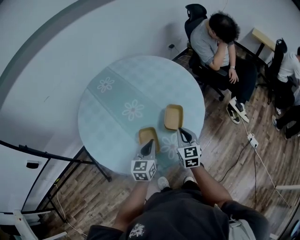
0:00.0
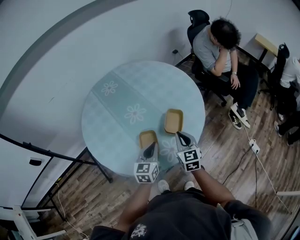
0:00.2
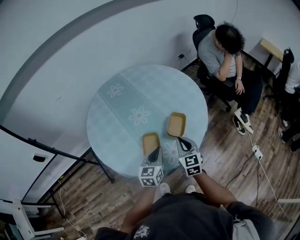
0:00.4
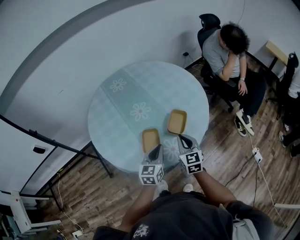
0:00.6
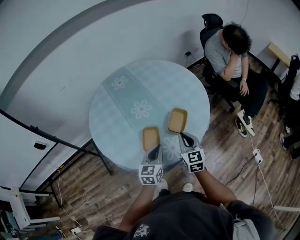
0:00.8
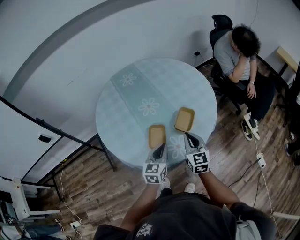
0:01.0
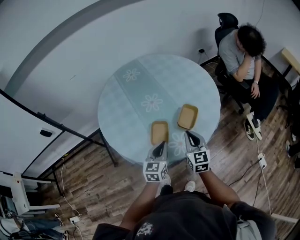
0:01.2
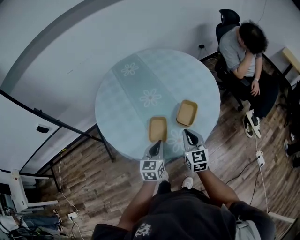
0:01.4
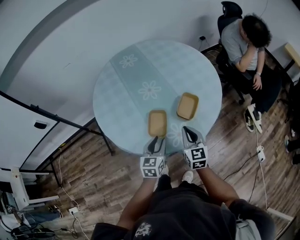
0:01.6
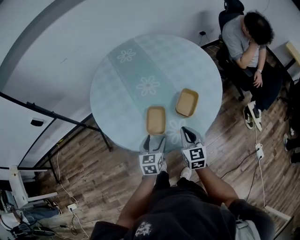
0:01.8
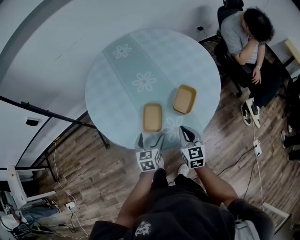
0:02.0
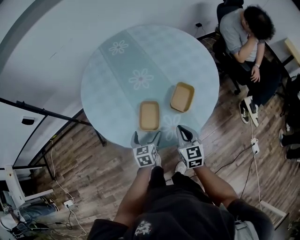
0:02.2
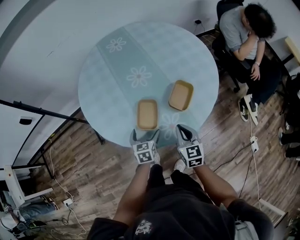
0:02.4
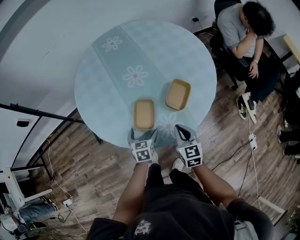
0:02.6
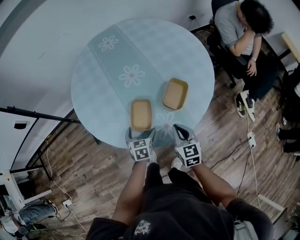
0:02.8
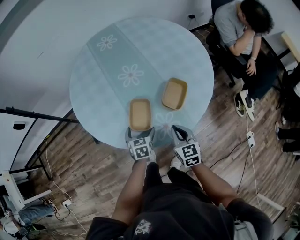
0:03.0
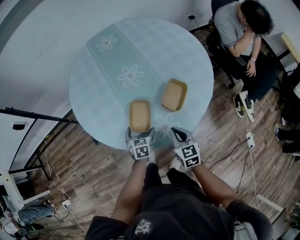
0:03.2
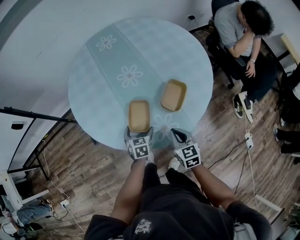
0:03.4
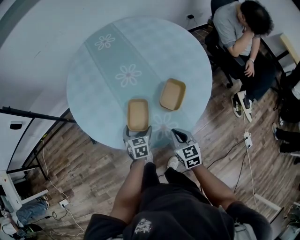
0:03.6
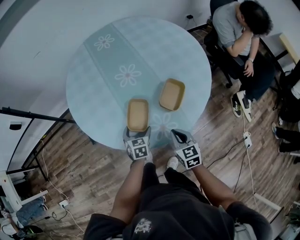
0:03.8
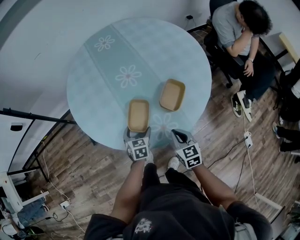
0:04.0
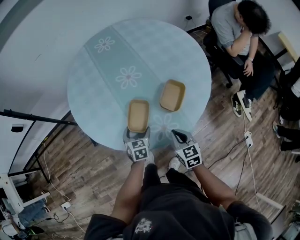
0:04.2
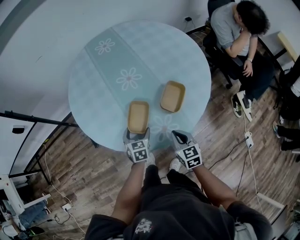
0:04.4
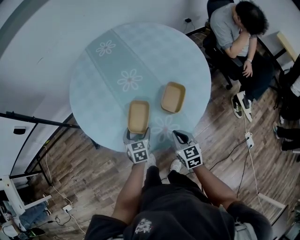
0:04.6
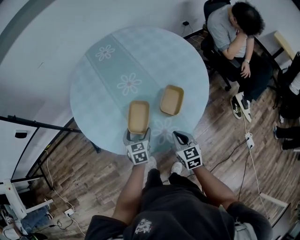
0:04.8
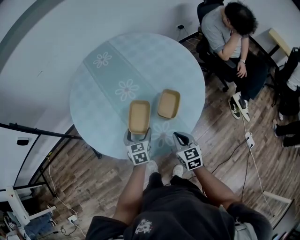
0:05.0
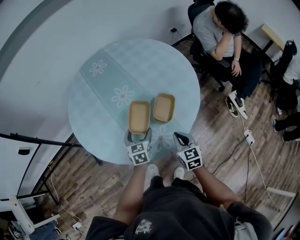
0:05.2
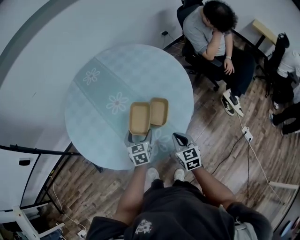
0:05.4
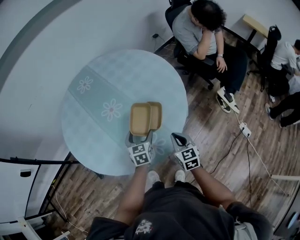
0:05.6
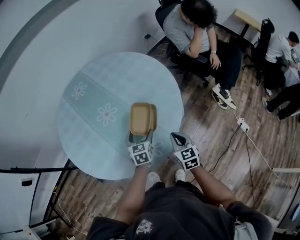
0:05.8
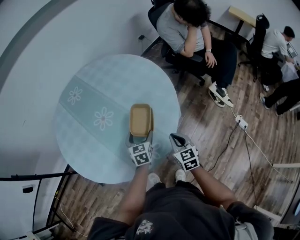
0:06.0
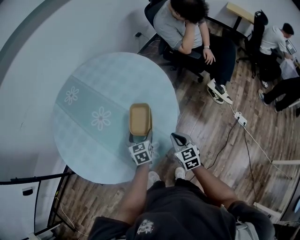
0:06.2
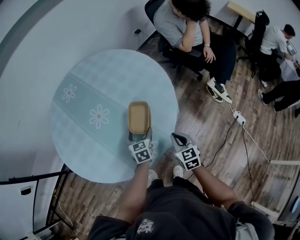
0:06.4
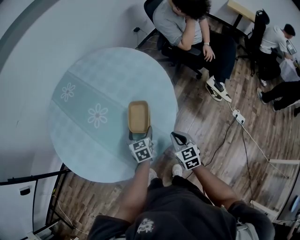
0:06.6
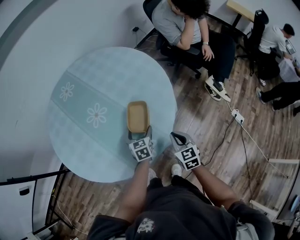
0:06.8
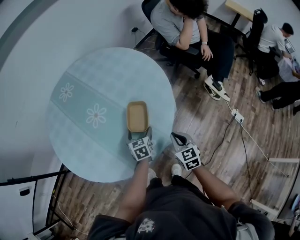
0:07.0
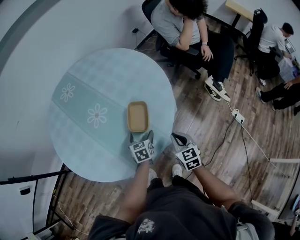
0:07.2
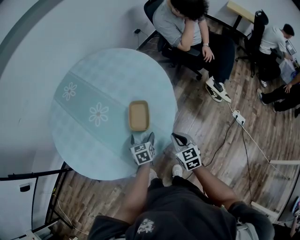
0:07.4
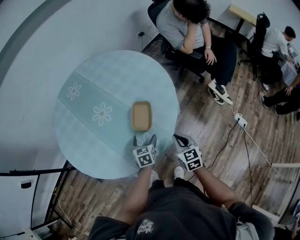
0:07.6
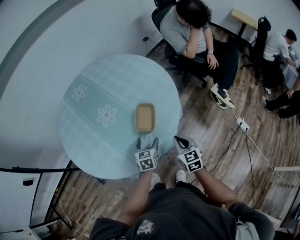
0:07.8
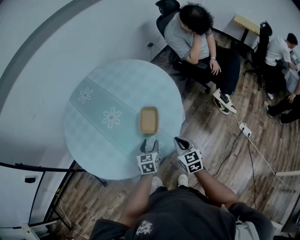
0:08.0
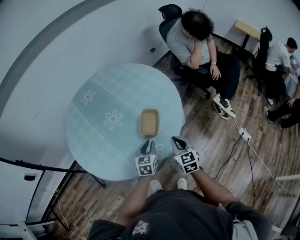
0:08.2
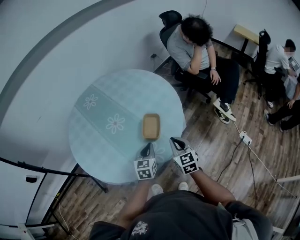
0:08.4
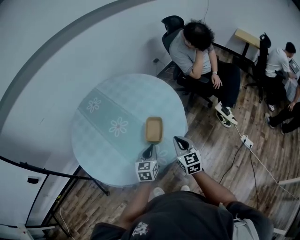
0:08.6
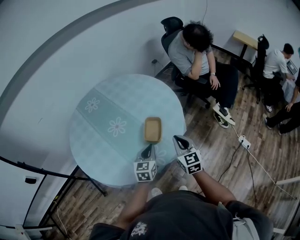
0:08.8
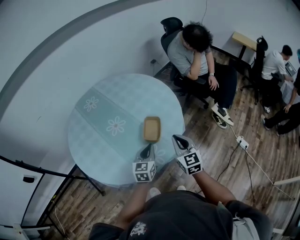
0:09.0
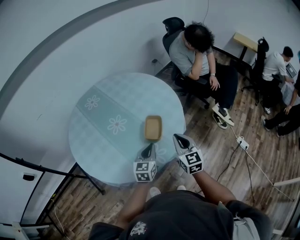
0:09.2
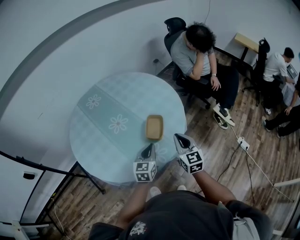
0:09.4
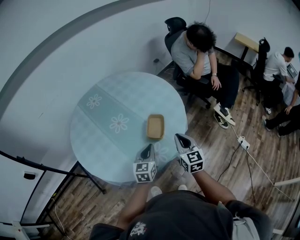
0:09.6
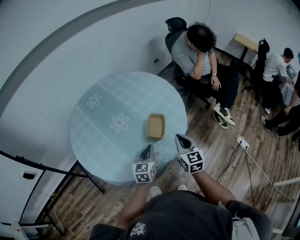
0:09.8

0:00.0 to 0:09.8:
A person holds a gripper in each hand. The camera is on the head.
0:00.0 to 0:01.4: The left gripper moves backward, some 5 cm, while the right gripper changes place by roughly 5 cm.
0:01.4 to 0:02.8: The right gripper goes approximately 10 cm downward. The left gripper shifts some 15 cm downward, changes its angle by approximately 20 degrees, and opens up.
0:02.8 to 0:04.2: The grippers stay close to where they were, moving slightly.
0:04.2 to 0:05.6: The right gripper moves to the right and upward, approximately 10 cm. Meanwhile the left gripper travels to the right, upward and forward by some 15 cm.
0:05.6 to 0:07.0: The right gripper travels to the right by roughly 5 cm, while the left gripper moves to the right and downward, some 10 cm.
0:07.0 to 0:08.4: The right gripper goes approximately 10 cm upward, while the left gripper goes about 15 cm upward and backward, and closes up.
0:08.4 to 0:09.8: The left gripper changes place by approximately 5 cm.

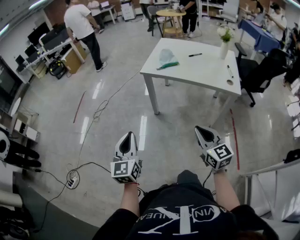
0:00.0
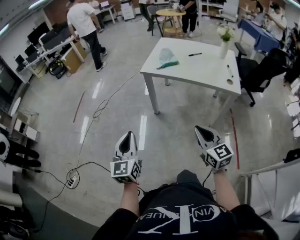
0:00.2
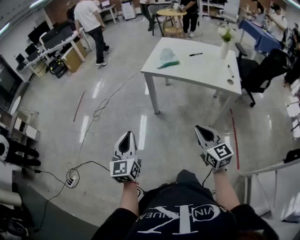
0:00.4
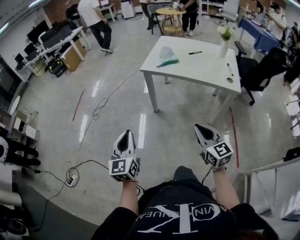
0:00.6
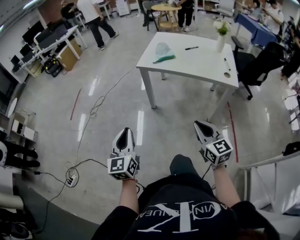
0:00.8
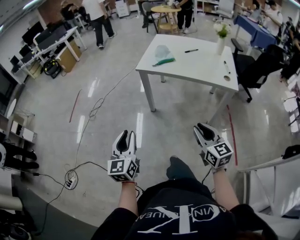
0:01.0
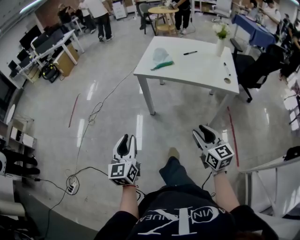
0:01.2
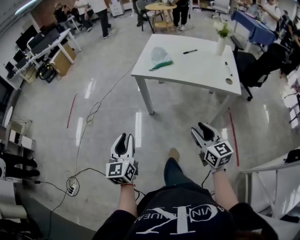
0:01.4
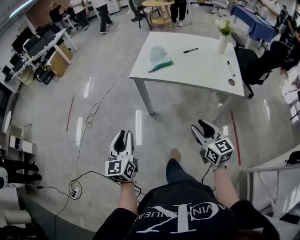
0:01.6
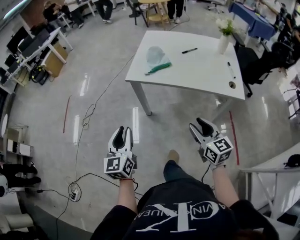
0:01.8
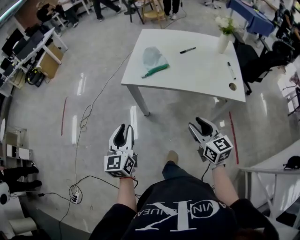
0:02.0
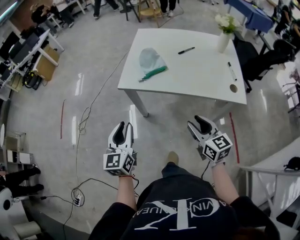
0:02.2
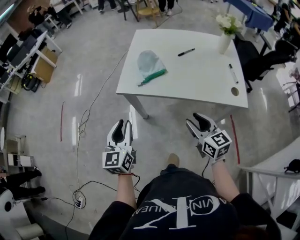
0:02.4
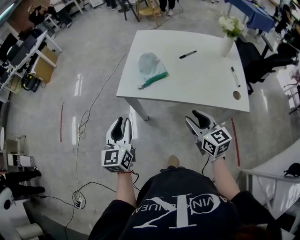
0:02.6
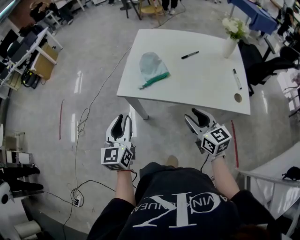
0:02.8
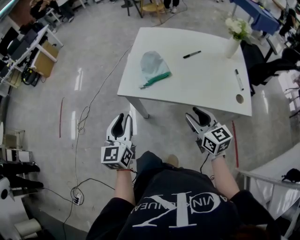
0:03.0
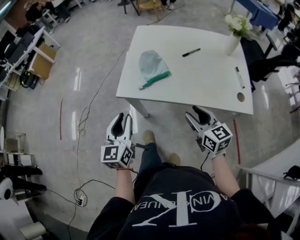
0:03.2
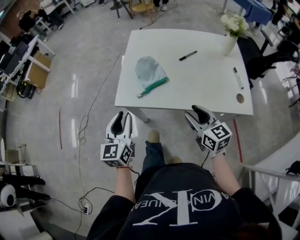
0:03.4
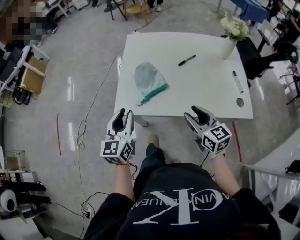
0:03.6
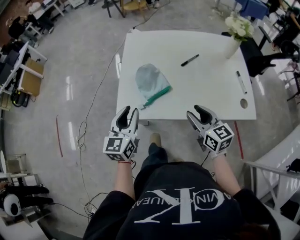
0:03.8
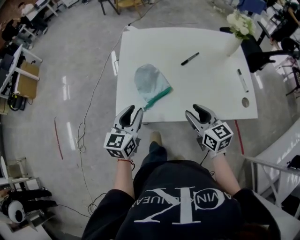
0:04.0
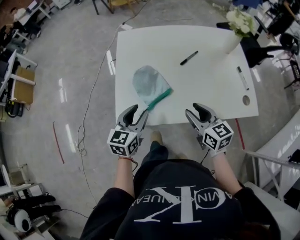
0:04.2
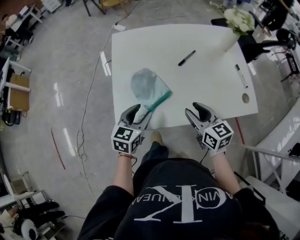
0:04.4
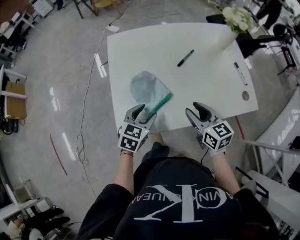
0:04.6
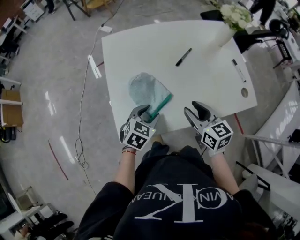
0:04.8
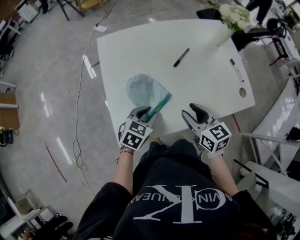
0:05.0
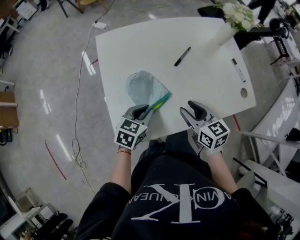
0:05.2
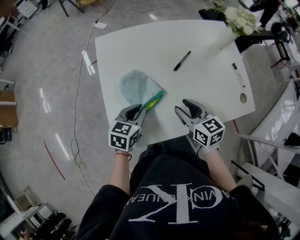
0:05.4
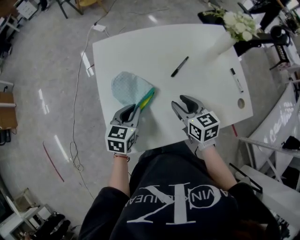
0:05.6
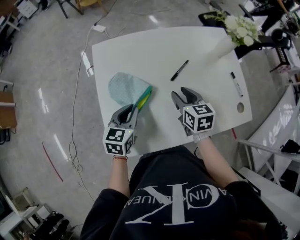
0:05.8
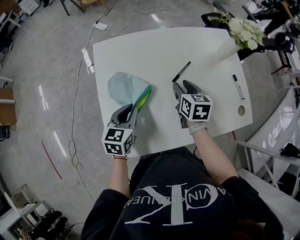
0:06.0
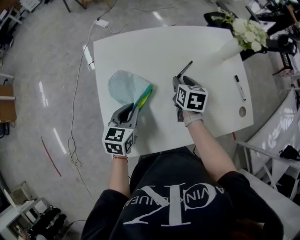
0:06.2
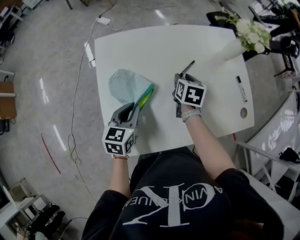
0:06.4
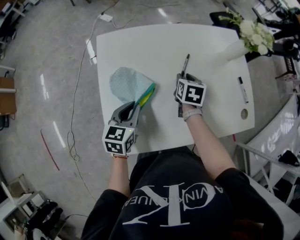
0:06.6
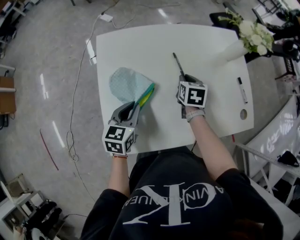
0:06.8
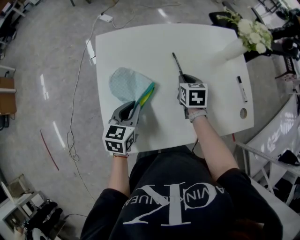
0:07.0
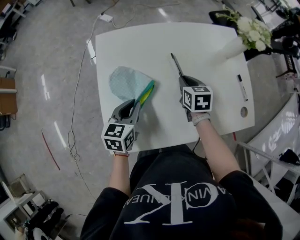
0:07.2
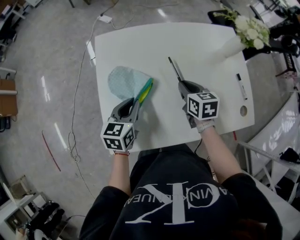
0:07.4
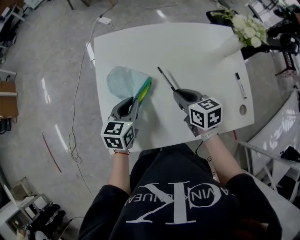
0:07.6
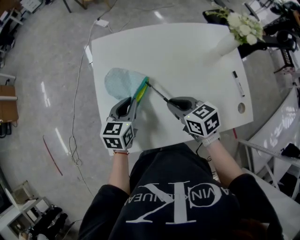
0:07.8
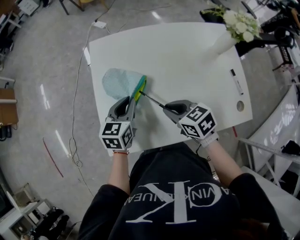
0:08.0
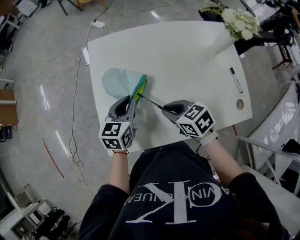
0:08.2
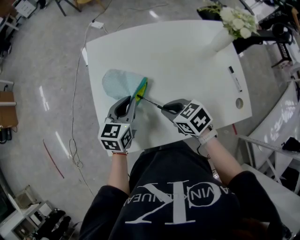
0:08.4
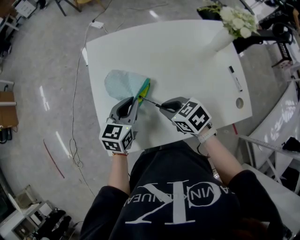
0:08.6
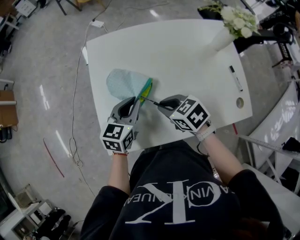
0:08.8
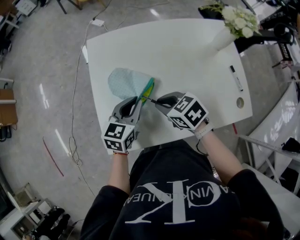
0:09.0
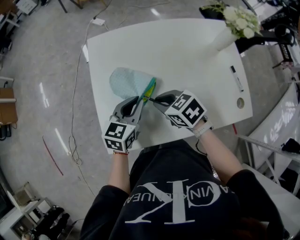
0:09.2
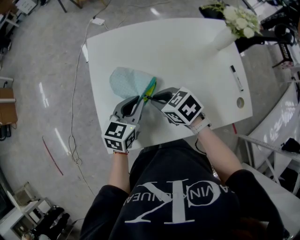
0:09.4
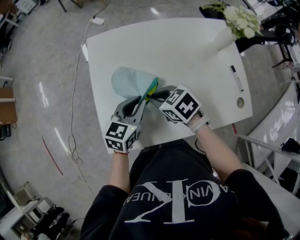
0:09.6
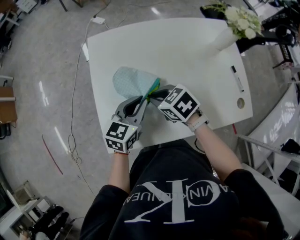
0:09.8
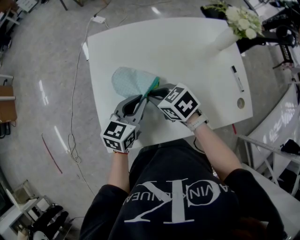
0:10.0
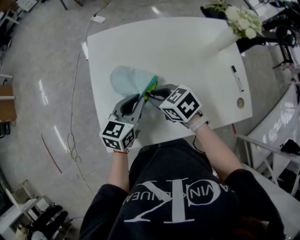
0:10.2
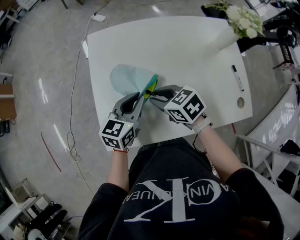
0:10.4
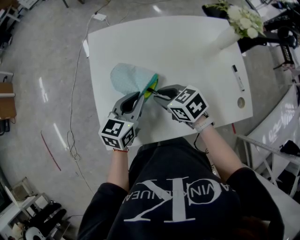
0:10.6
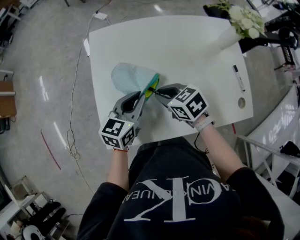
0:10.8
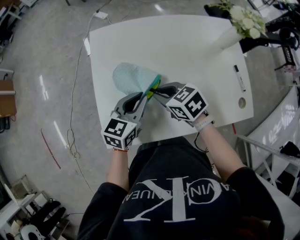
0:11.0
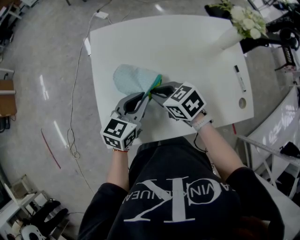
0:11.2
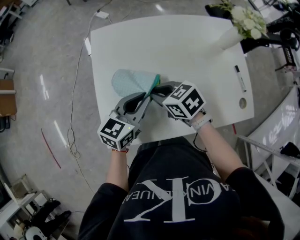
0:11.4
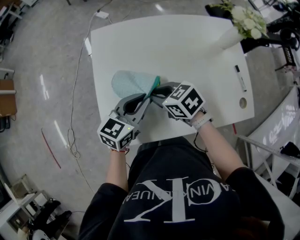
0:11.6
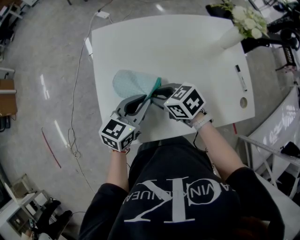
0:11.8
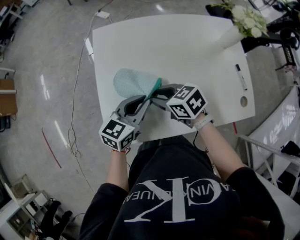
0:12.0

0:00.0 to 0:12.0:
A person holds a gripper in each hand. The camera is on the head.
0:00.0 to 0:01.6: The grippers both shift forward by some 15 cm. The left gripper opens its fingers; the right gripper opens up.
0:01.6 to 0:03.0: Both grippers move forward, roughly 25 cm.
0:03.0 to 0:04.4: The right gripper shifts by approximately 15 cm, while the left gripper changes place by roughly 25 cm, swivels some 40 degrees, and opens its fingers.
0:04.4 to 0:06.0: The left gripper moves forward, roughly 15 cm, and closes its fingers. Meanwhile the right gripper moves forward, roughly 20 cm, and turns by some 30 degrees.
0:06.0 to 0:07.6: The right gripper travels backward by approximately 5 cm, changes its angle by some 20 degrees, and closes.
0:07.6 to 0:09.0: The right gripper goes some 5 cm to the left, and turns by about 30 degrees.
0:09.0 to 0:12.0: The grippers make only small movements.

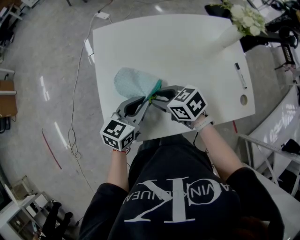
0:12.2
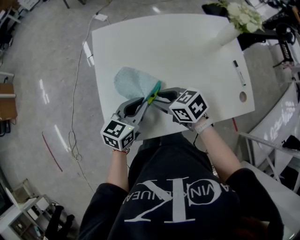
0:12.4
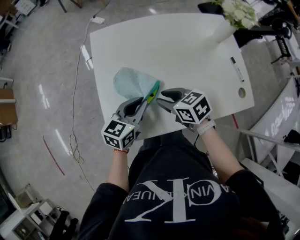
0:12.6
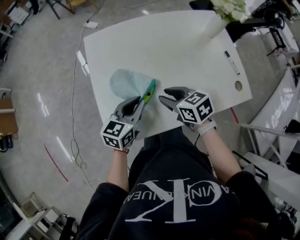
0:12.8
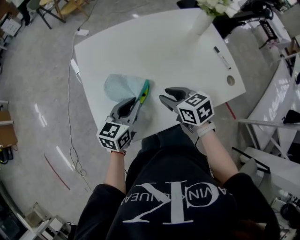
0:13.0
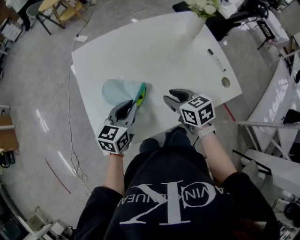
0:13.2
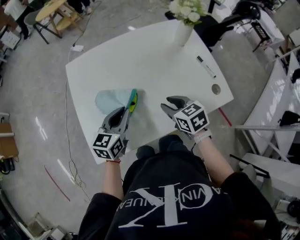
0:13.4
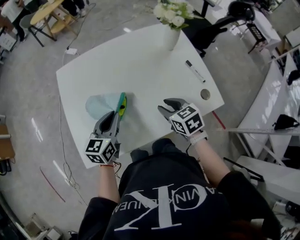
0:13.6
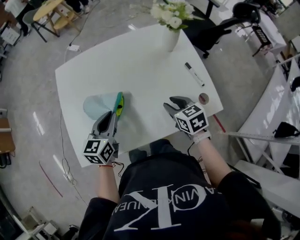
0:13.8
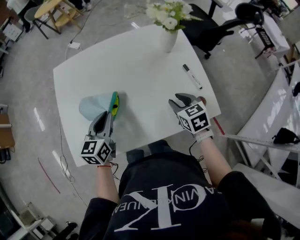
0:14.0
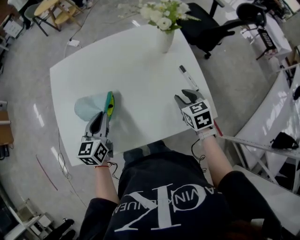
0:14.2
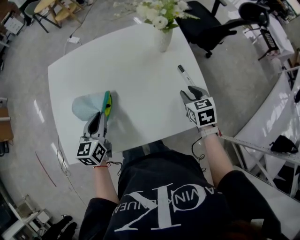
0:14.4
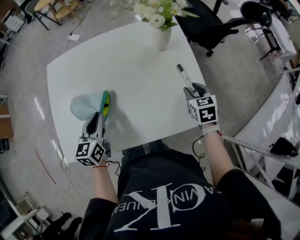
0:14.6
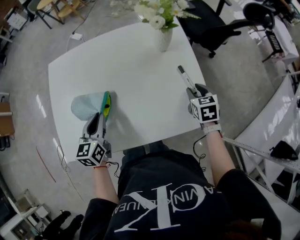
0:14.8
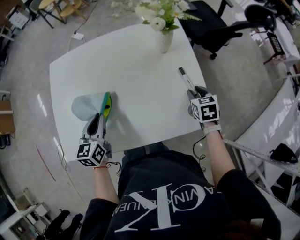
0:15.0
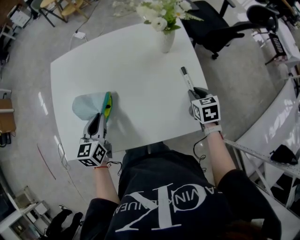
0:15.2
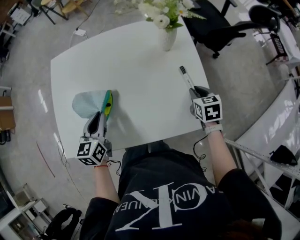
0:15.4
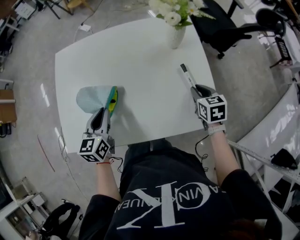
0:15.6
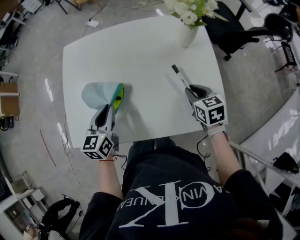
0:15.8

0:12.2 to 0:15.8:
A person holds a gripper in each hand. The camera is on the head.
0:12.2 to 0:14.0: The left gripper is displaced to the right by some 10 cm. Meanwhile the right gripper is displaced to the right by approximately 35 cm, and rotates about 30 degrees.
0:14.0 to 0:15.8: The right gripper goes to the right and returns, approximately 15 cm each way.
